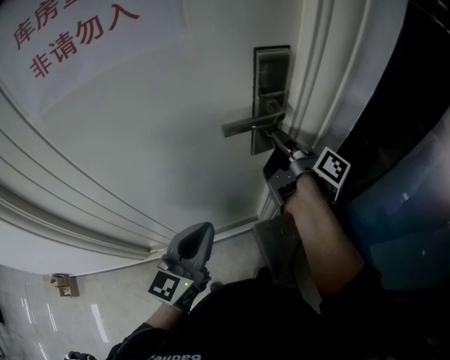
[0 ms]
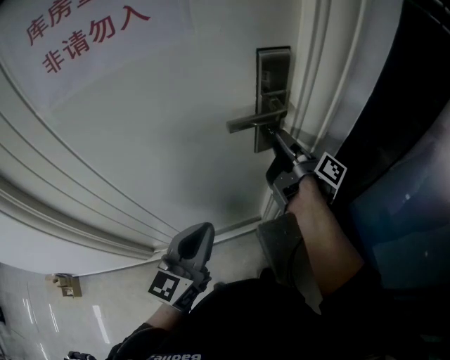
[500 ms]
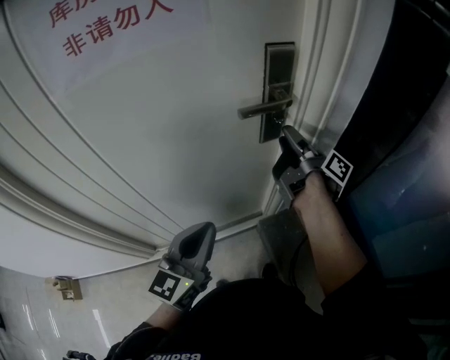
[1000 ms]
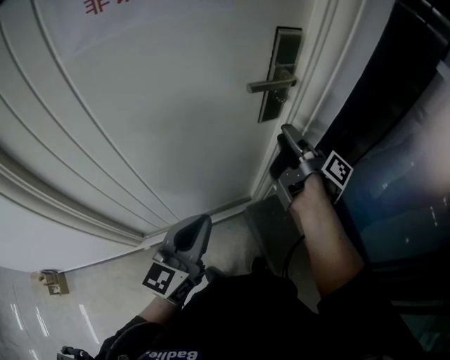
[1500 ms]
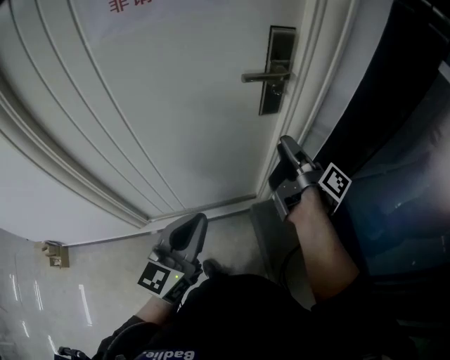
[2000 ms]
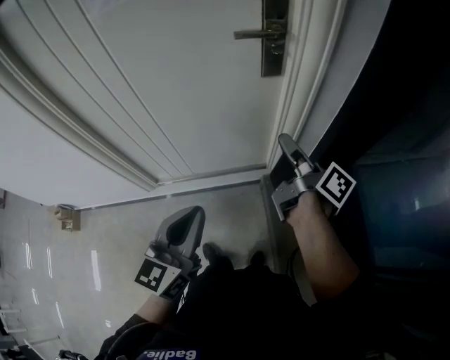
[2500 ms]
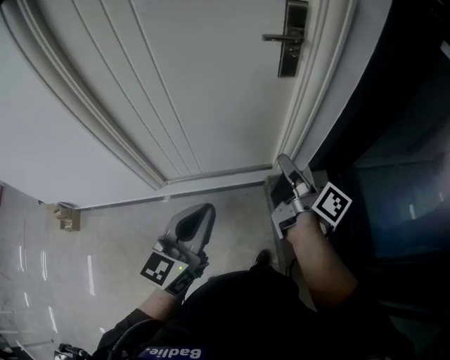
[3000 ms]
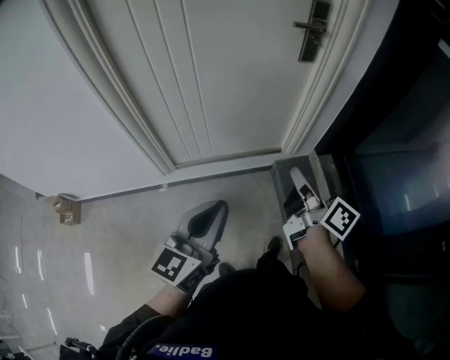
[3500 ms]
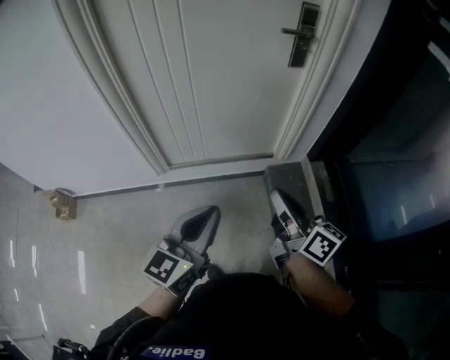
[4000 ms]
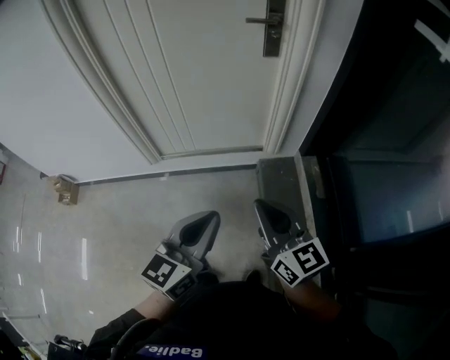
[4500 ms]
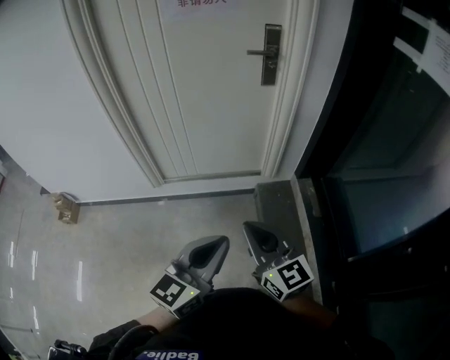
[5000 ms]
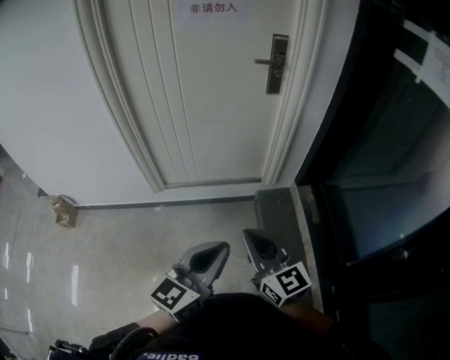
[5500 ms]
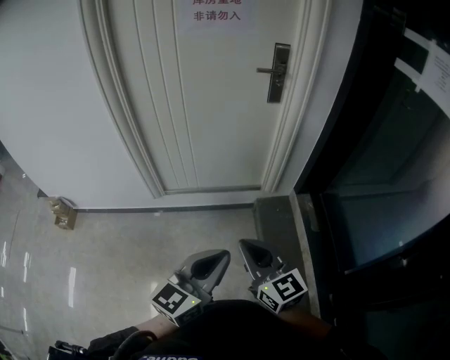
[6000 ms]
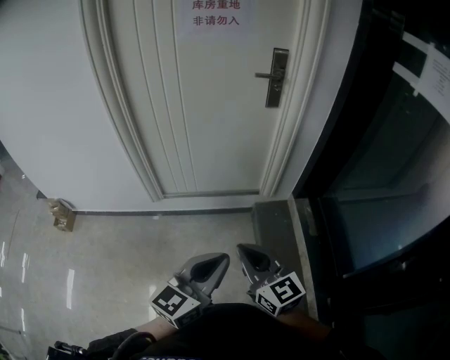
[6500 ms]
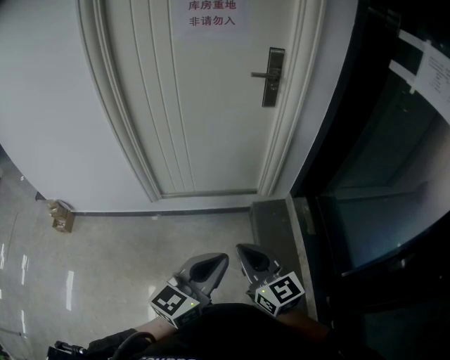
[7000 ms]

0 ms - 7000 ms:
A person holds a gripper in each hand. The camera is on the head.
0 ms - 2000 ms: The two grippers go roughly 15 cm backward. The right gripper opens up.
2000 ms - 3500 ms: Both grippers move backward, roughly 30 cm. The right gripper changes its angle by approximately 20 degrees, and closes.
3500 ms - 5000 ms: The right gripper travels backward by roughly 20 cm, and rolls counterclockwise, seen from behind, by about 60 degrees; the left gripper shifts some 25 cm to the right and backward.
5000 ms - 7000 ms: The grippers stay close to where they were, moving slightly.

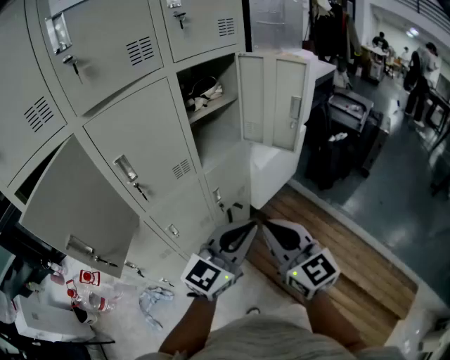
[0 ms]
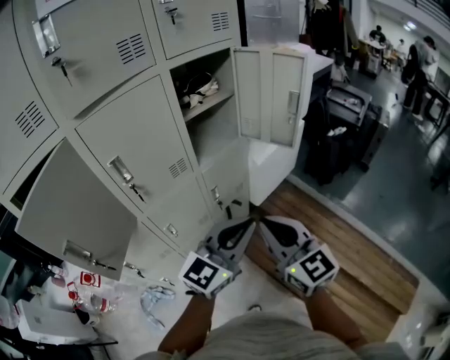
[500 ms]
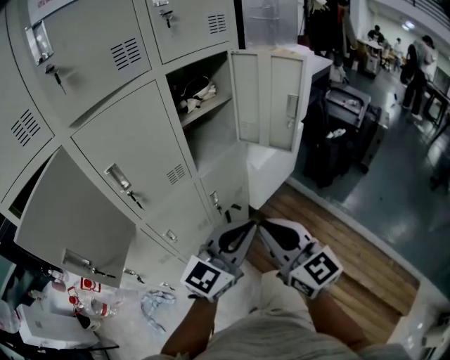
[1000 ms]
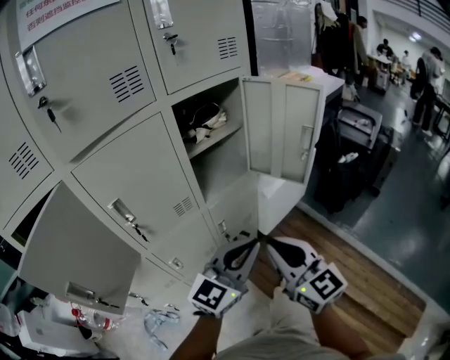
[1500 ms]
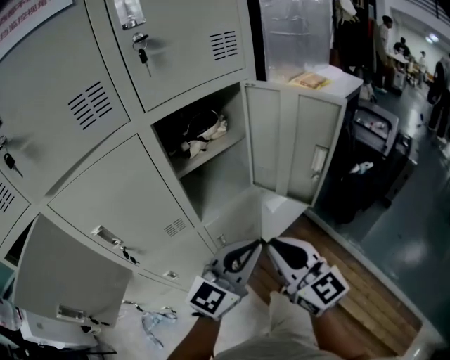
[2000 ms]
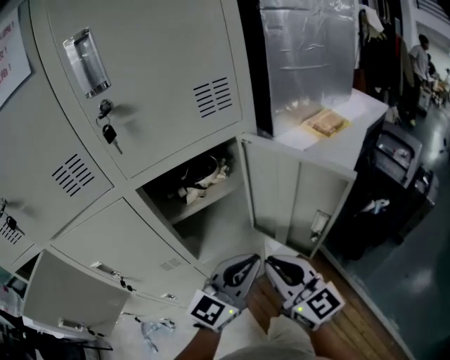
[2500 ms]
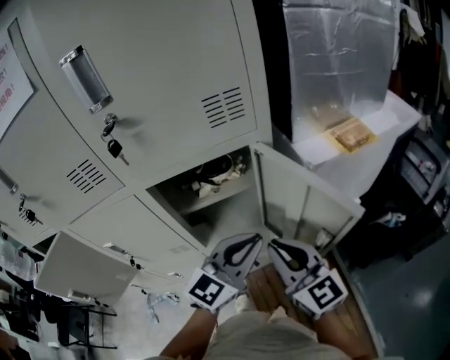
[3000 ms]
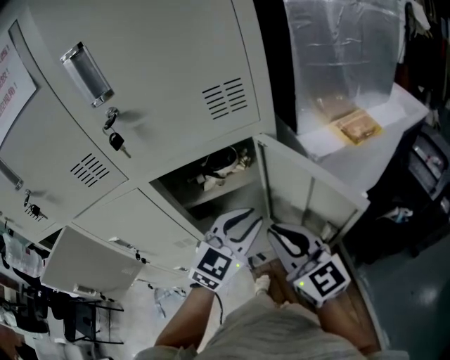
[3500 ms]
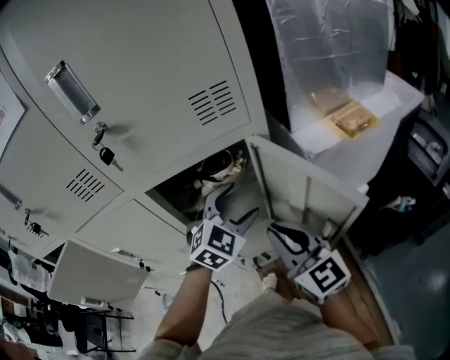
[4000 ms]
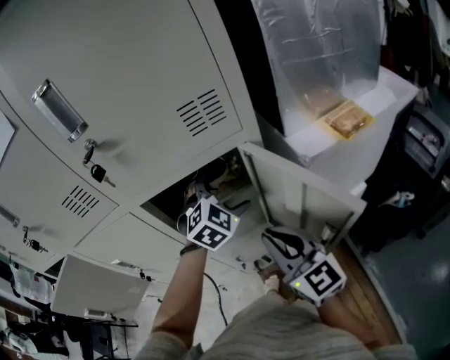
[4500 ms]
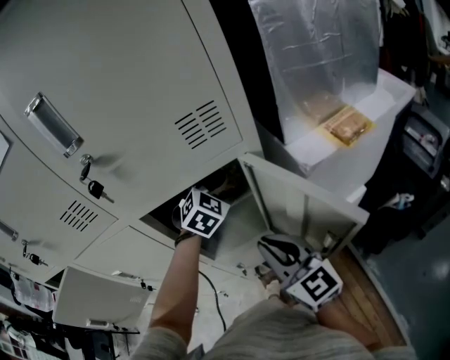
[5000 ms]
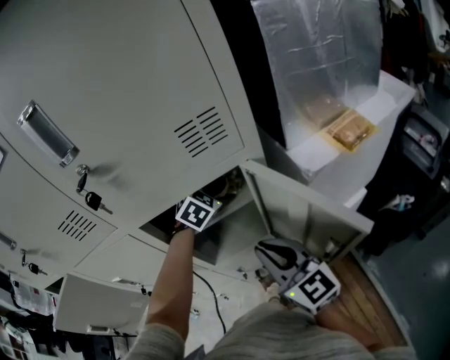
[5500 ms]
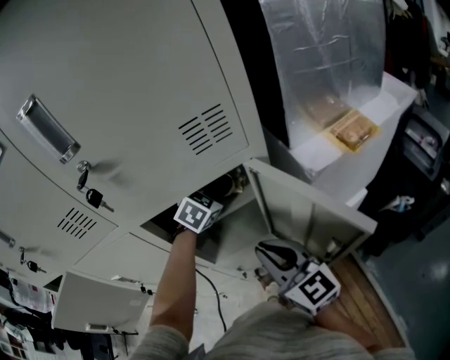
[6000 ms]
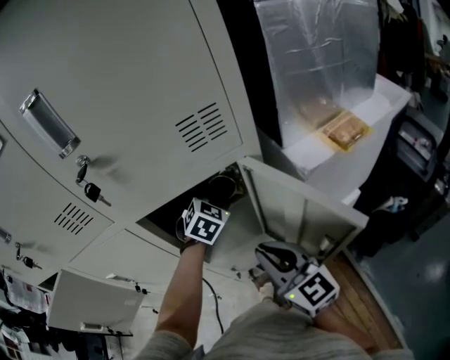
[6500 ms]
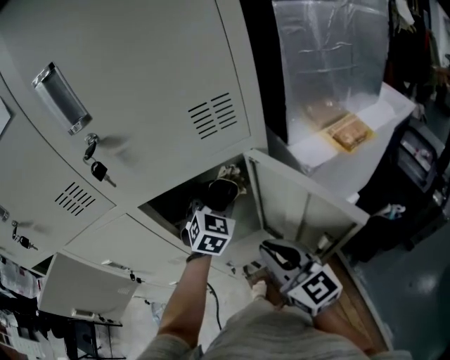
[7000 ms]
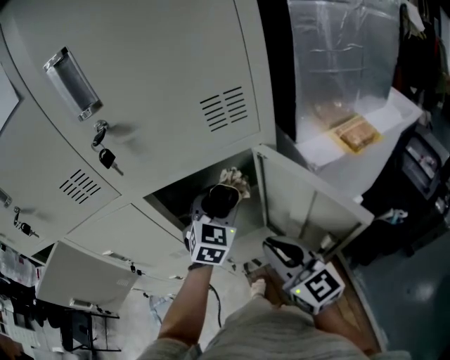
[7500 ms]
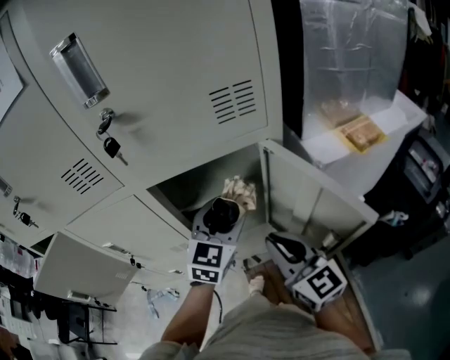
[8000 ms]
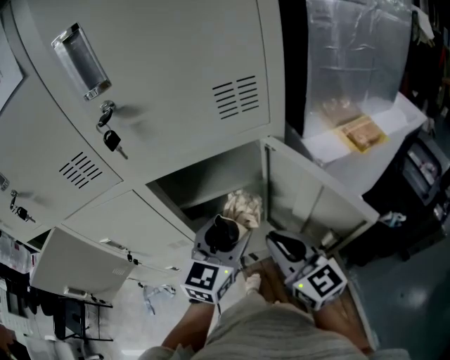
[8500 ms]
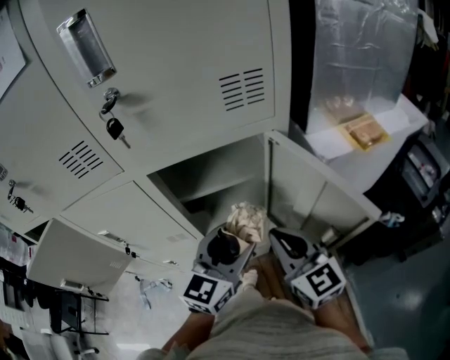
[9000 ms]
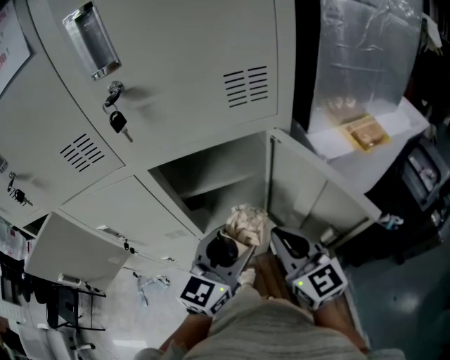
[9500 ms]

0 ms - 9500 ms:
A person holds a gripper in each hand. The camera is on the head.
0 ms - 2000 ms: Both grippers travel together forward, approximately 20 cm.
2000 ms - 4000 ms: The right gripper changes place by approximately 20 cm. Meanwhile the left gripper ends up roughly 25 cm from where it was, angles its fingers downward, by about 30 degrees, and opens its fingers.
4000 ms - 5500 ms: The left gripper moves forward, some 15 cm, and opens.
5500 ms - 7500 ms: The left gripper travels backward by roughly 10 cm, swivels some 30 degrees, and closes its fingers.
7500 ms - 9500 ms: The left gripper goes some 15 cm backward, and swivels some 30 degrees.

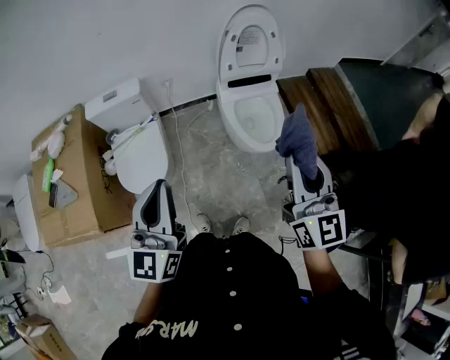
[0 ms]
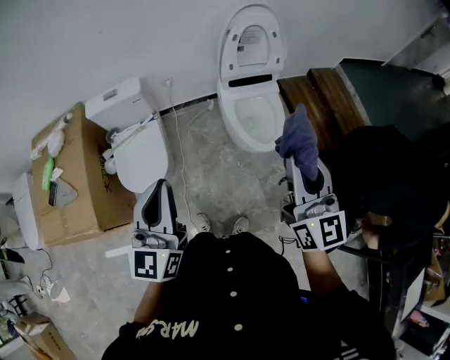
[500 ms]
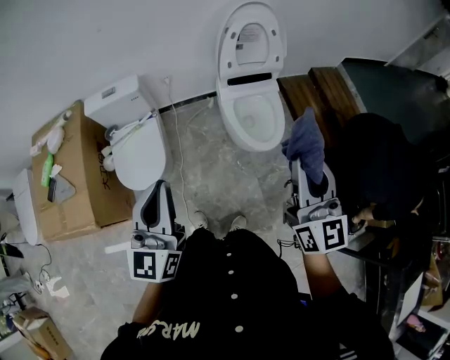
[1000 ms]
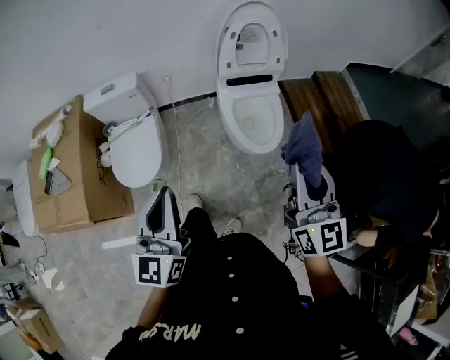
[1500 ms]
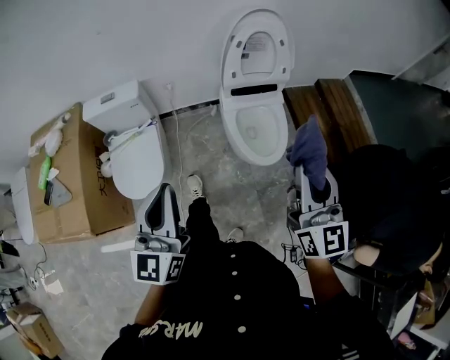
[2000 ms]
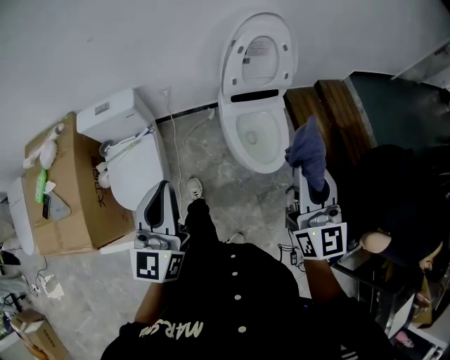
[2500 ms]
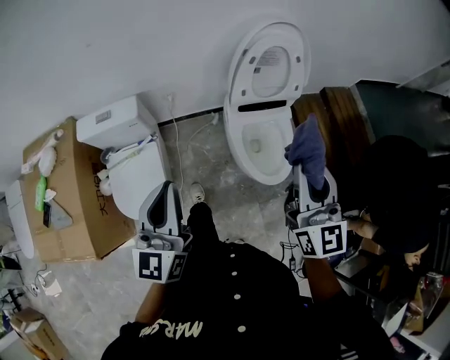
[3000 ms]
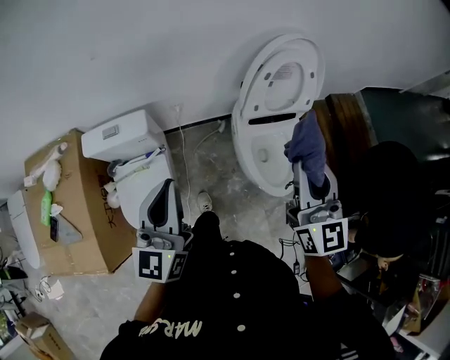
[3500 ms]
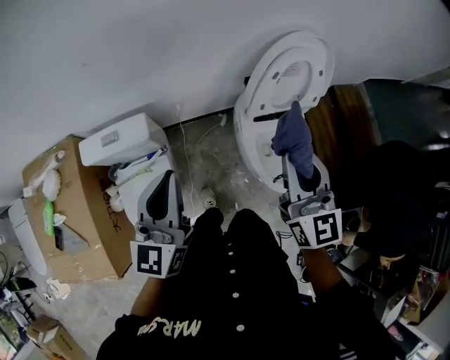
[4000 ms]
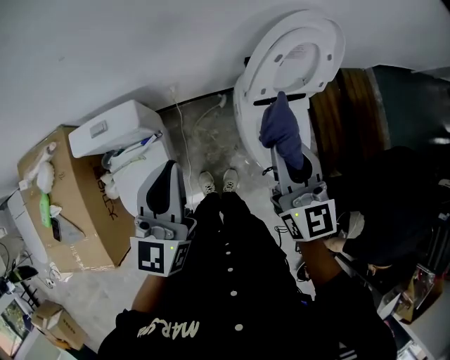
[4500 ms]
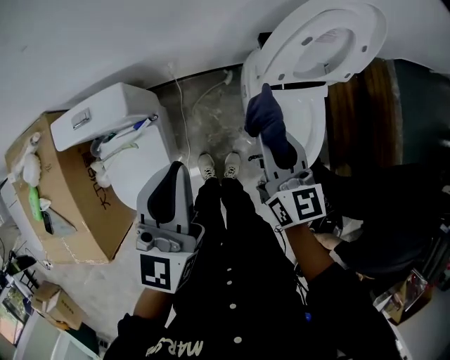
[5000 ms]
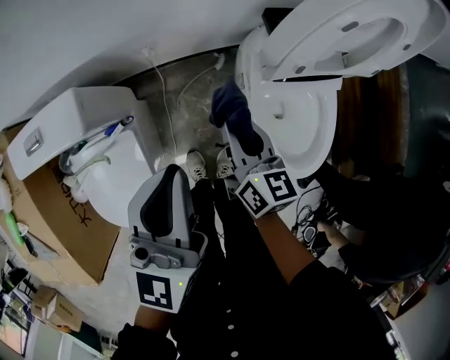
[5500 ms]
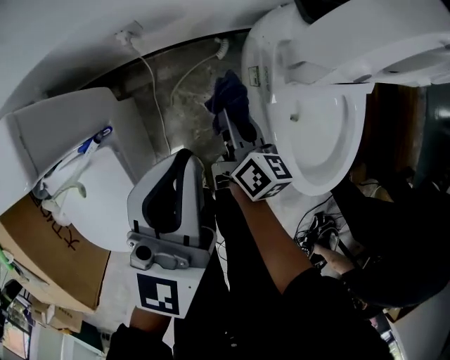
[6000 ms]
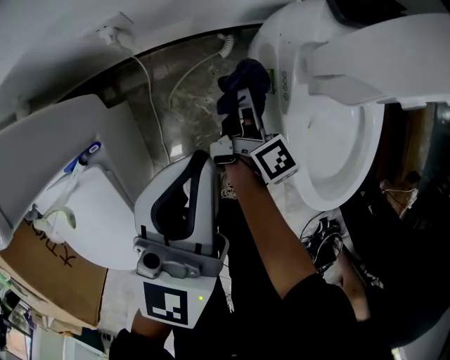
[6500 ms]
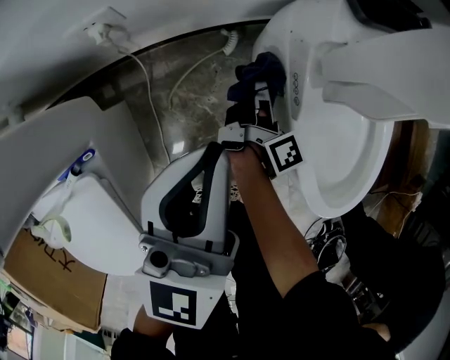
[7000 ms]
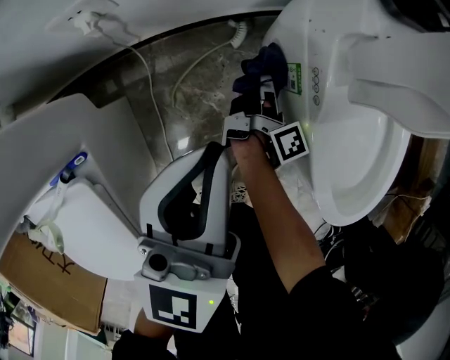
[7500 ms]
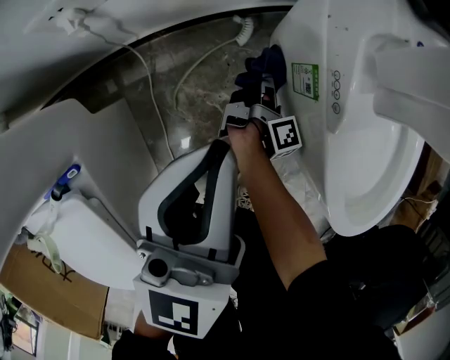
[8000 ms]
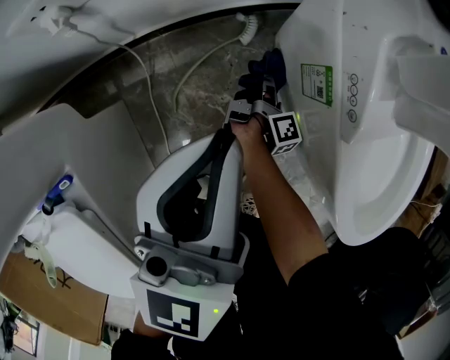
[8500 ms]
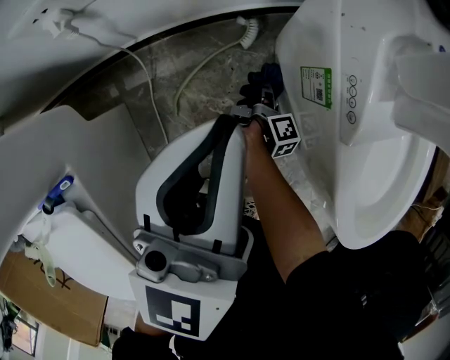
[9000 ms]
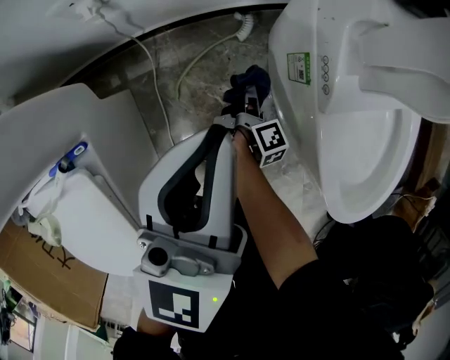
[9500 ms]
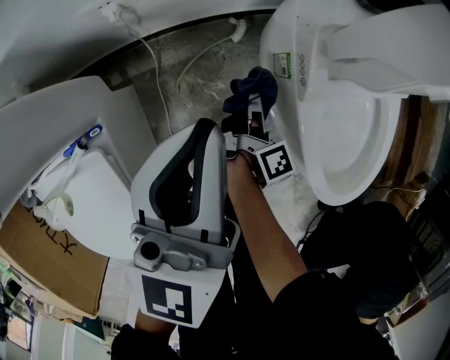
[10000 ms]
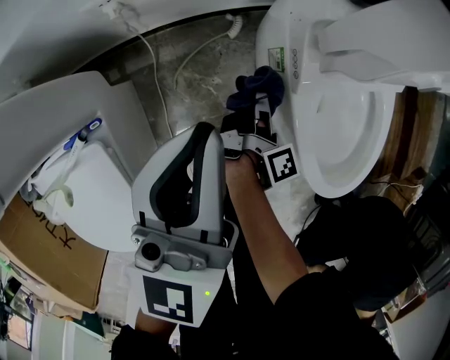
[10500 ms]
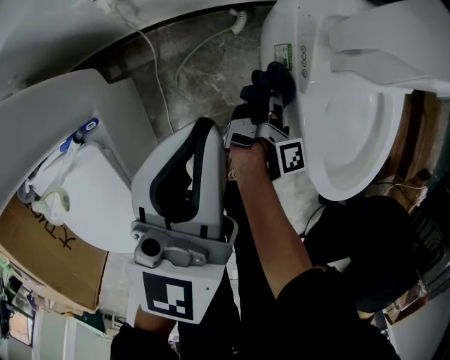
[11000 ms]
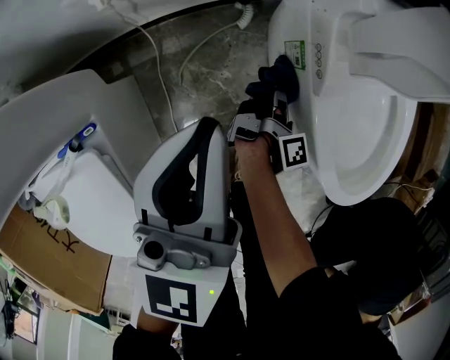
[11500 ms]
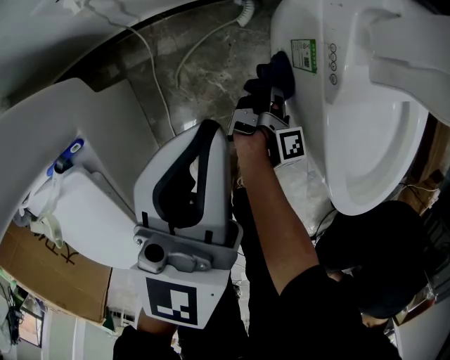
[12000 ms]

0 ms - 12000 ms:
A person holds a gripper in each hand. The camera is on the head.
0 ms - 2000 ms: The left gripper shifts approximately 5 cm forward; the right gripper travels forward and to the right by some 10 cm.
2000 ms - 4000 ms: The right gripper is displaced forward and to the left by about 35 cm. The left gripper travels forward by approximately 30 cm.
4000 ms - 6000 ms: The left gripper heads downward, covering about 40 cm. Meanwhile the right gripper moves downward, some 60 cm, and rotates around the line of its fingers by some 50 degrees, clockwise from behind.
6000 ms - 8000 ms: The right gripper travels downward by some 30 cm, and rolls clockwise, seen from behind, by approximately 50 degrees. The left gripper goes approximately 20 cm downward.
8000 ms - 10000 ms: The left gripper travels upward by some 10 cm. The right gripper goes roughly 15 cm upward and backward.
10000 ms - 12000 ms: The left gripper moves downward, roughly 10 cm, while the right gripper moves downward and to the right, about 15 cm.
